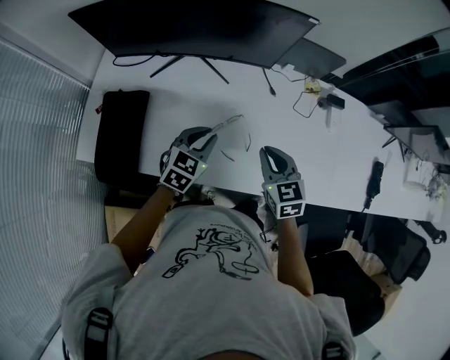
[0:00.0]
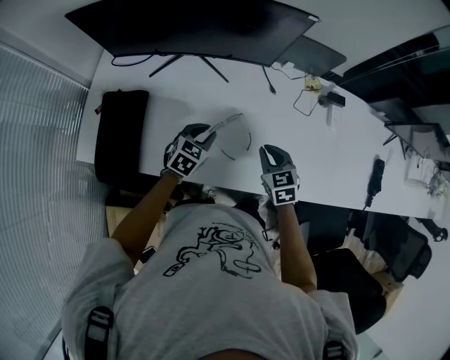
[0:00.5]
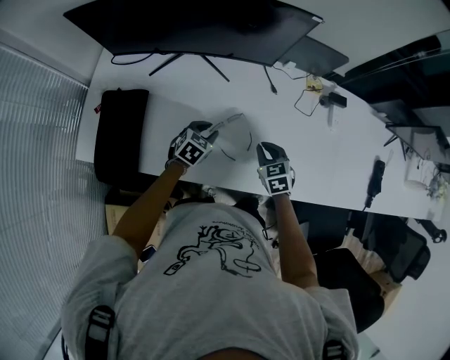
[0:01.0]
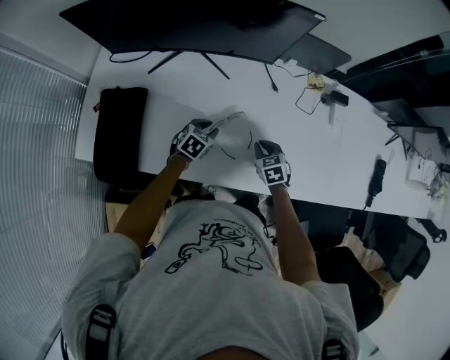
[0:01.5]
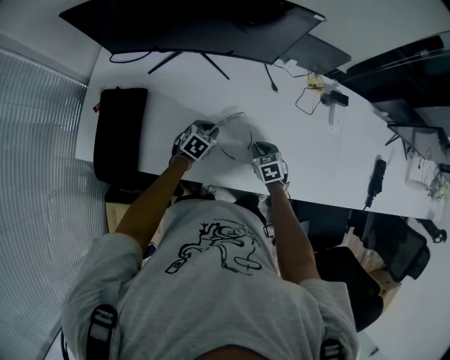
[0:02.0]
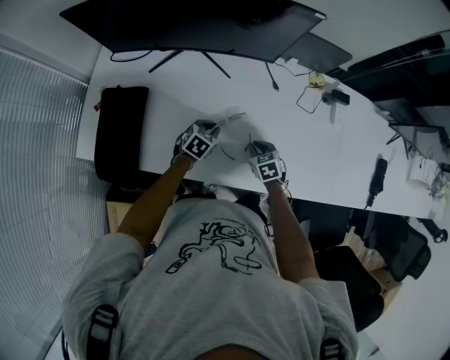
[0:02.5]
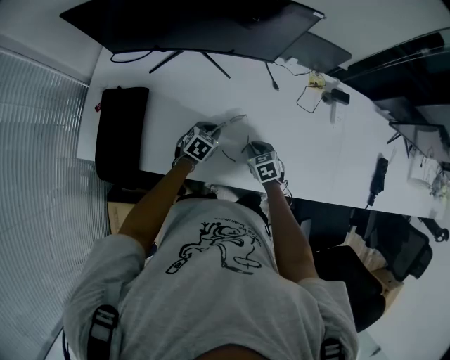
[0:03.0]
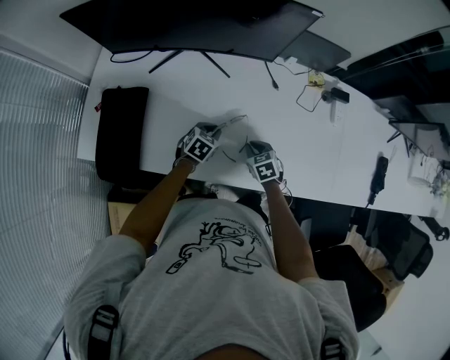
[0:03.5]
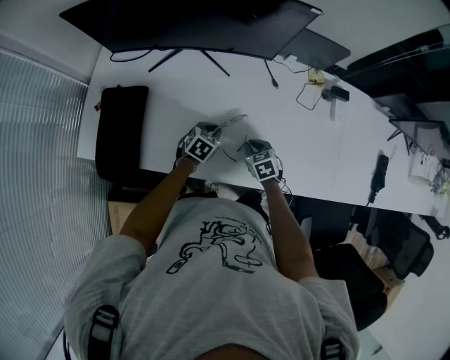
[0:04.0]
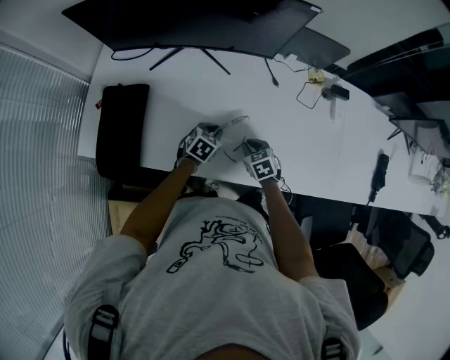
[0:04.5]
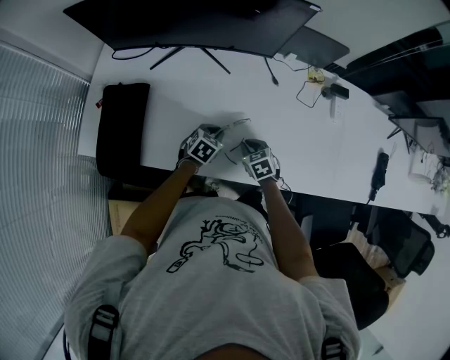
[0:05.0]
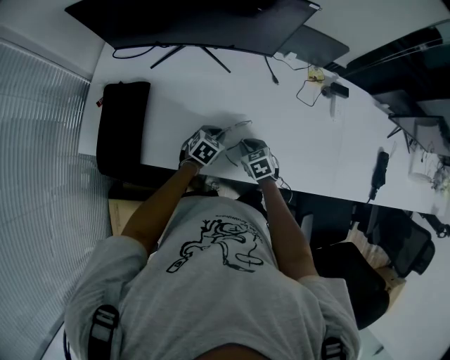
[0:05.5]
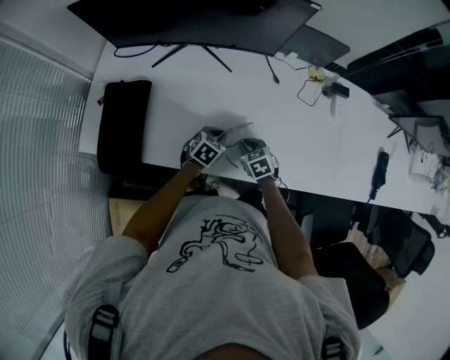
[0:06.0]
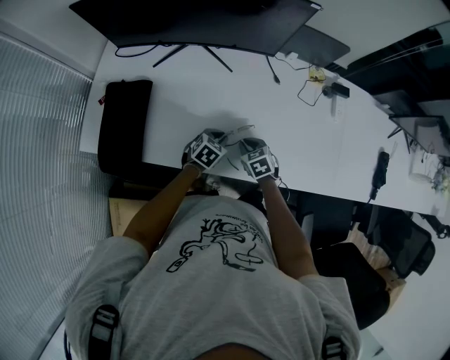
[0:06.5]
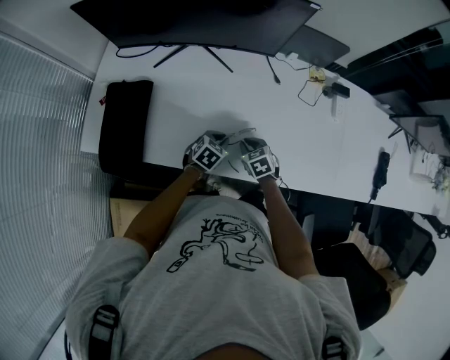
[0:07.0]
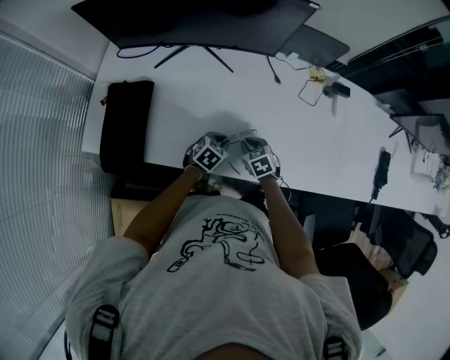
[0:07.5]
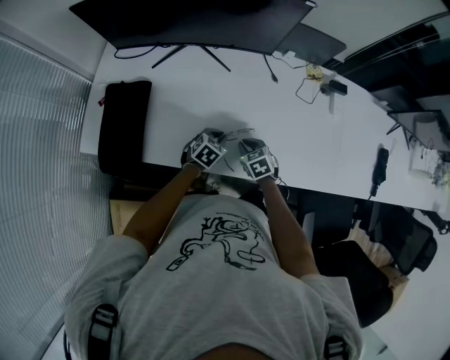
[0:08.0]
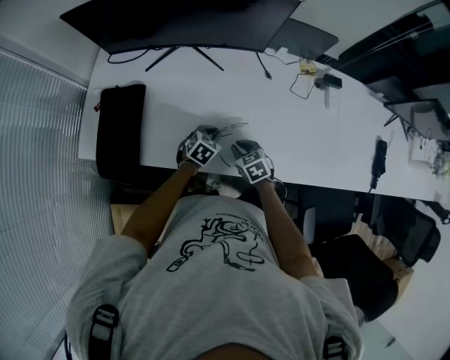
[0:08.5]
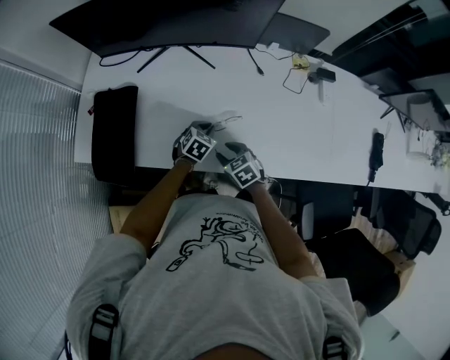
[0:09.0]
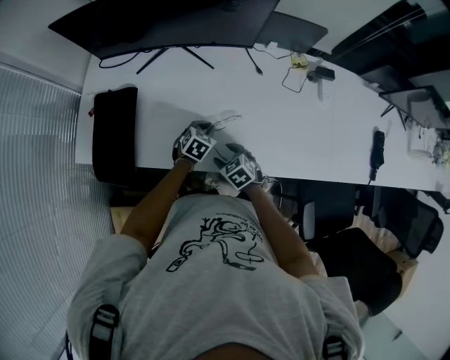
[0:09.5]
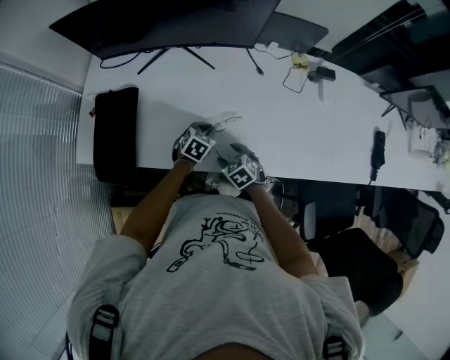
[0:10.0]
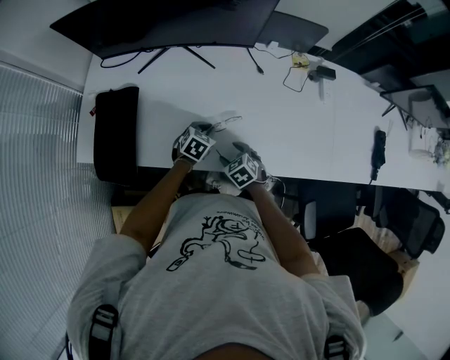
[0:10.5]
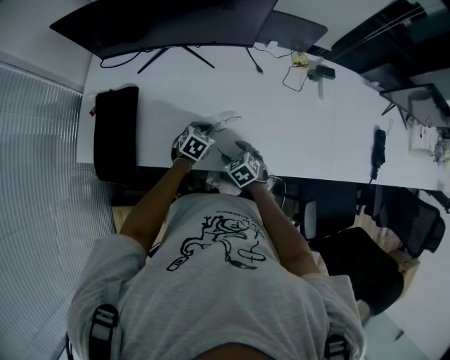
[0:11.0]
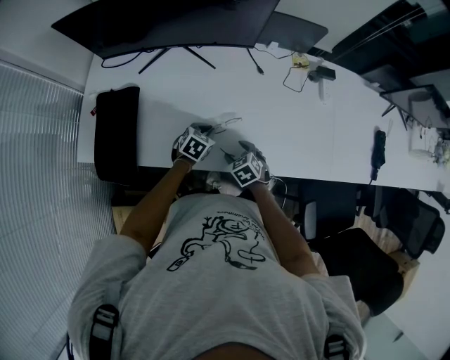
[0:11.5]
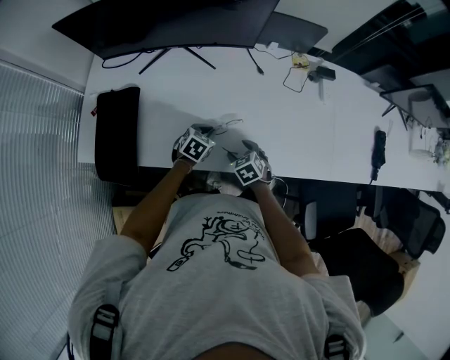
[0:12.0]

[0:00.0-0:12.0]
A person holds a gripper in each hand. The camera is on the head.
0:00.0 to 0:02.0: The grippers both shift downward by some 20 cm. The right gripper changes its angle by some 20 degrees.
0:02.0 to 0:04.0: The grippers stay close to where they were, moving slightly.
0:04.0 to 0:06.0: There are only small adjustments of the grippers.
0:06.0 to 0:08.0: There are only small adjustments of the grippers.
0:08.0 to 0:10.0: The right gripper shifts roughly 5 cm backward, and opens up.
0:10.0 to 0:12.0: There are only small adjustments of the grippers.

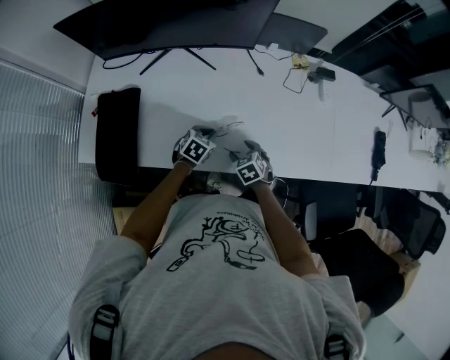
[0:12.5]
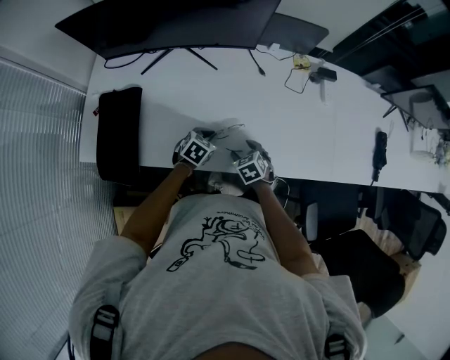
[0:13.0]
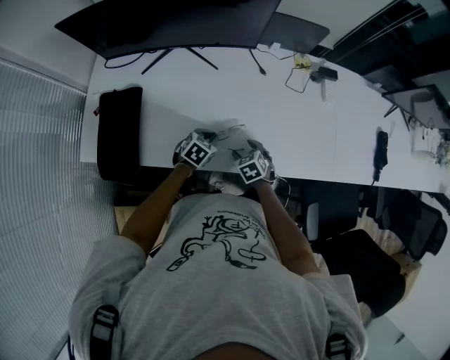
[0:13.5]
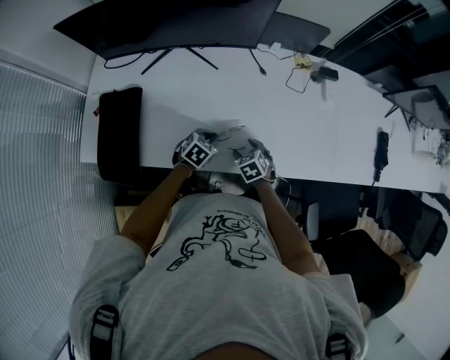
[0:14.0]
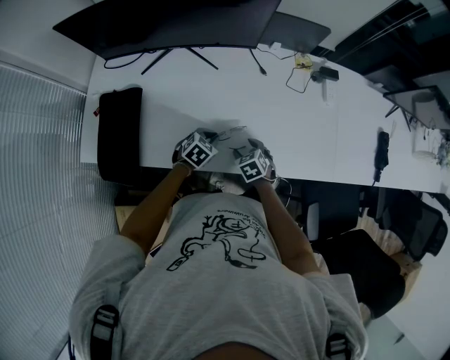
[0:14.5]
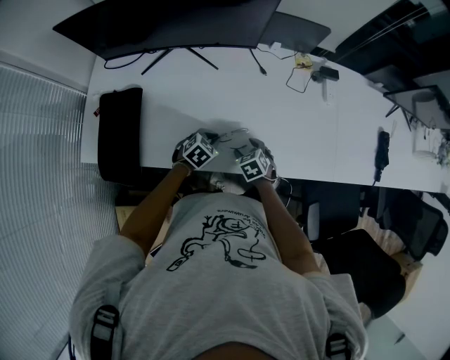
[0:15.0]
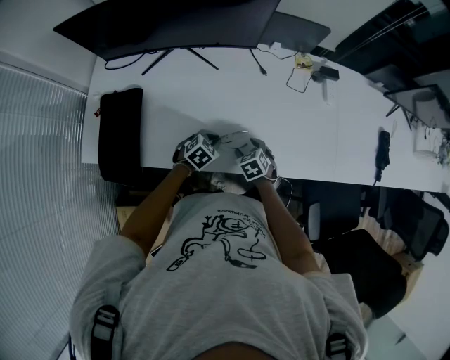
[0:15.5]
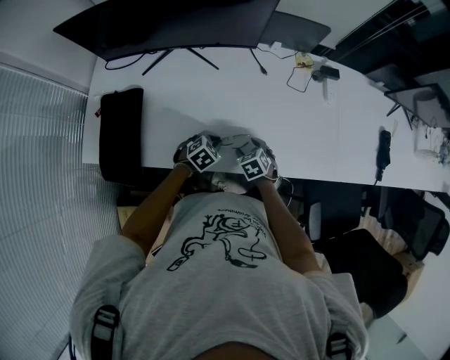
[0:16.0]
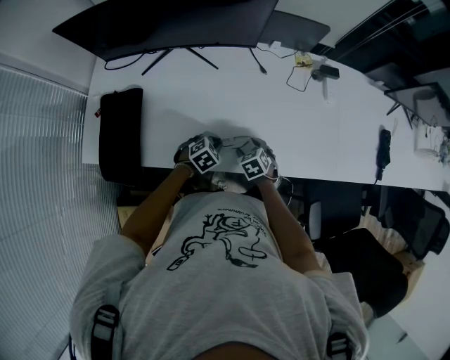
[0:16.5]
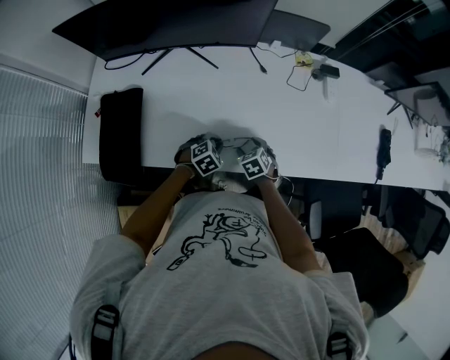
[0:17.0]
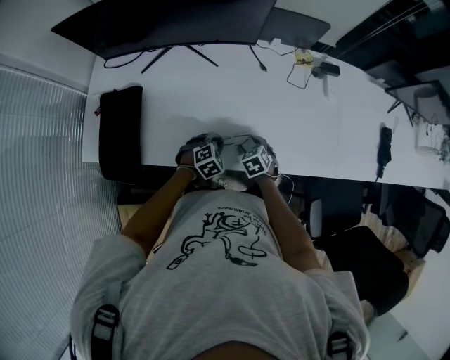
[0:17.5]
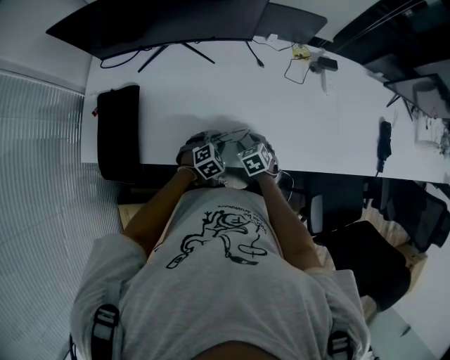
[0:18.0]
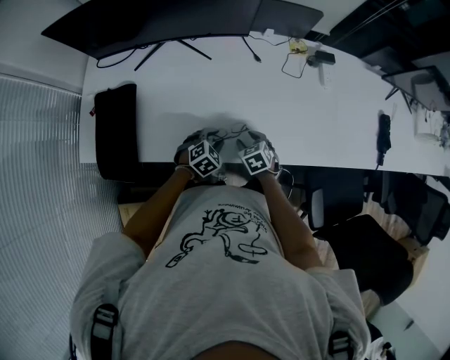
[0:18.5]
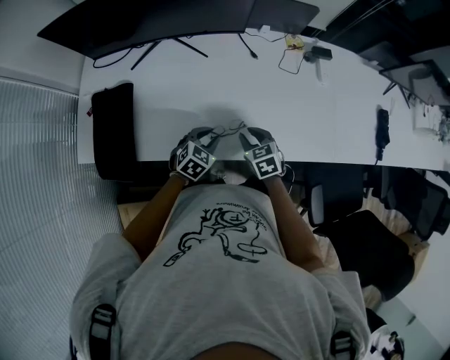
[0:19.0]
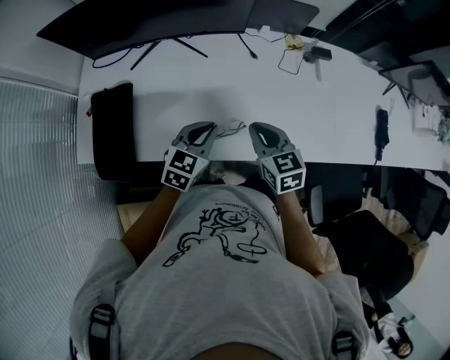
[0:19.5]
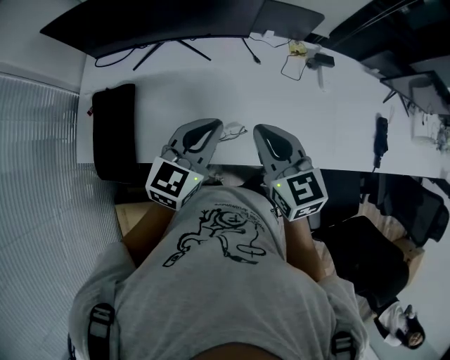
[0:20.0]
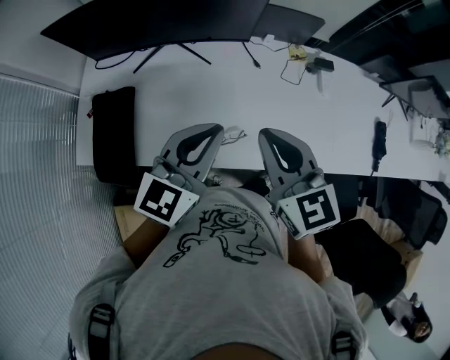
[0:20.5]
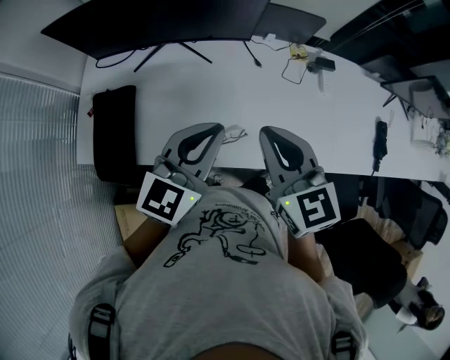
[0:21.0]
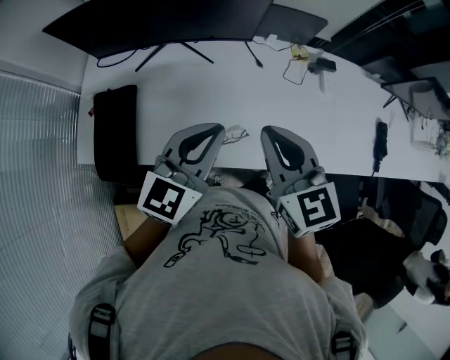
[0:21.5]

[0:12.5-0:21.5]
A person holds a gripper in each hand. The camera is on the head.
0:12.5 to 0:14.5: There are only small adjustments of the grippers.
0:14.5 to 0:17.0: The grippers stay close to where they were, moving slightly.
0:17.0 to 0:19.5: The two grippers go about 20 cm upward. The left gripper angles its fingers upward, by approximately 30 degrees, and opens, then closes again; the right gripper changes its angle by some 30 degrees, and closes up.
0:19.5 to 0:21.5: The grippers both shift upward by approximately 20 cm. The left gripper turns by some 20 degrees.

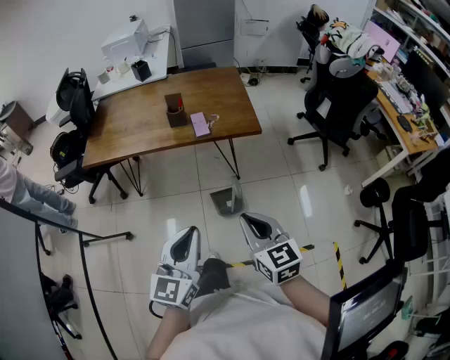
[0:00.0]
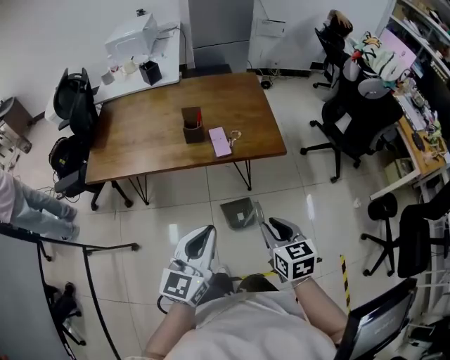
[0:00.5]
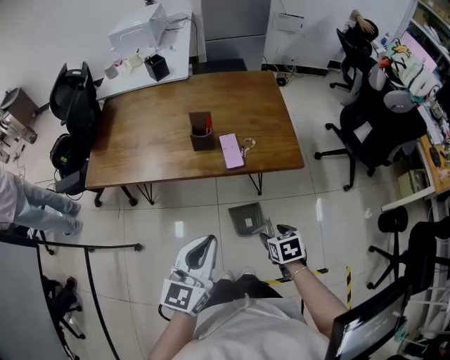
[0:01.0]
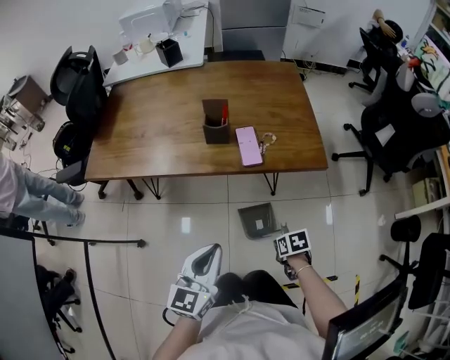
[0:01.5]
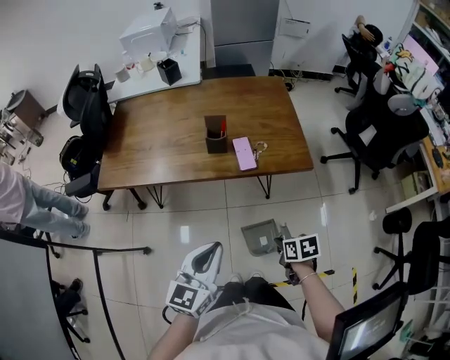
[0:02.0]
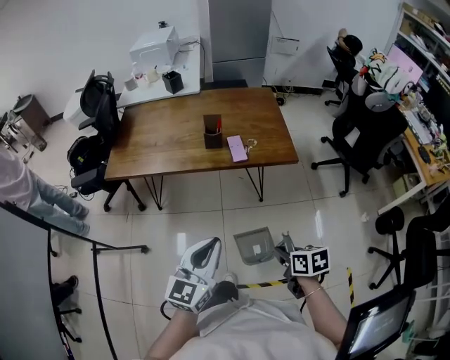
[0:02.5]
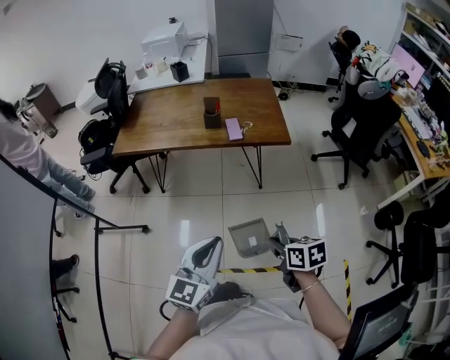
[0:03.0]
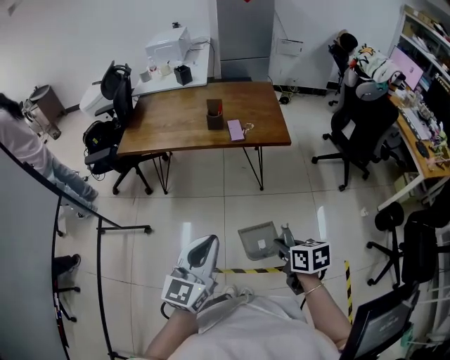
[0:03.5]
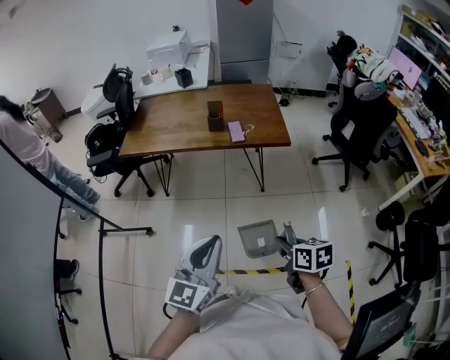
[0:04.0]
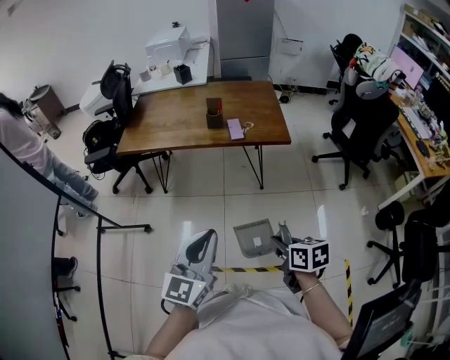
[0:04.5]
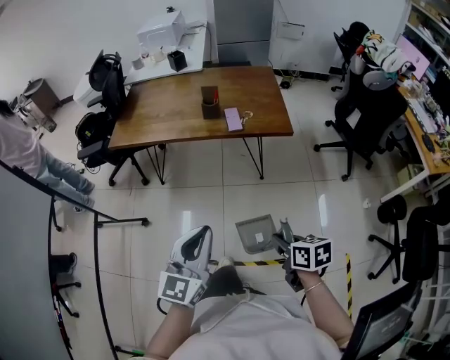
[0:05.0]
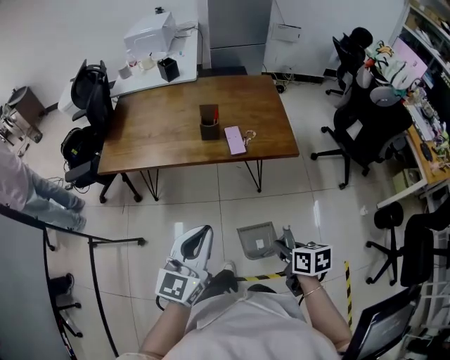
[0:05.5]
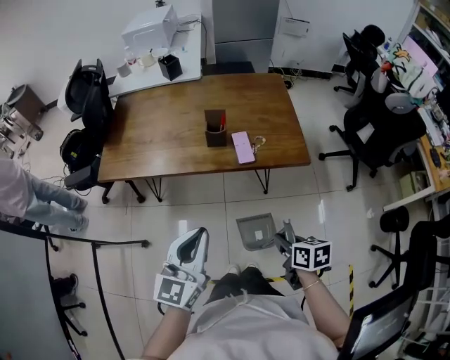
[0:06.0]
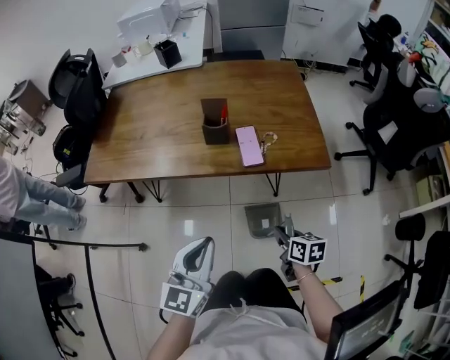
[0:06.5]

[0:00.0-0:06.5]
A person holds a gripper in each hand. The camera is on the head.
0:00.0 to 0:02.0: The left gripper moves forward, roughly 20 cm; the right gripper is displaced downward and forward by approximately 30 cm, points its fingers approximately 40 degrees further downward, and opens, then closes again.
0:02.0 to 0:04.5: The right gripper is displaced backward and upward by about 30 cm. The left gripper is displaced backward by some 25 cm.
0:04.5 to 0:06.5: Both grippers move forward and downward, some 40 cm.
